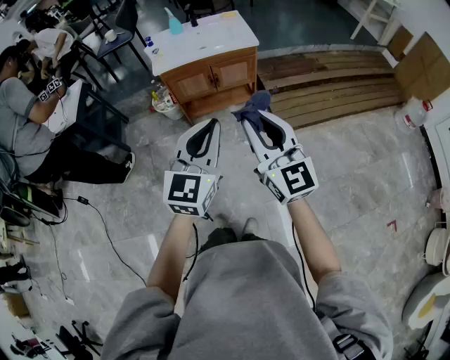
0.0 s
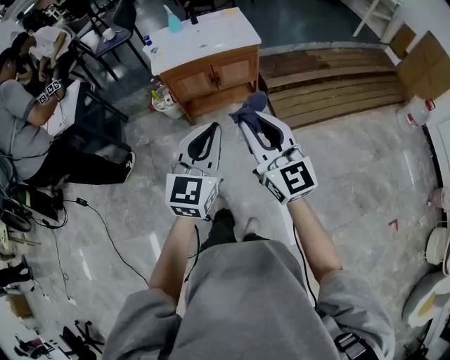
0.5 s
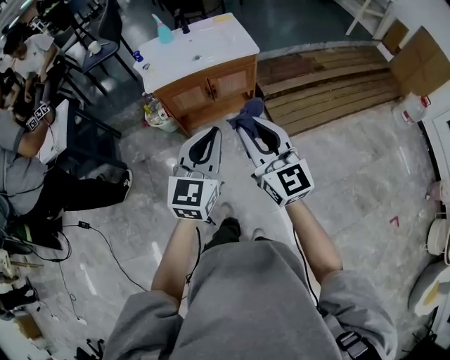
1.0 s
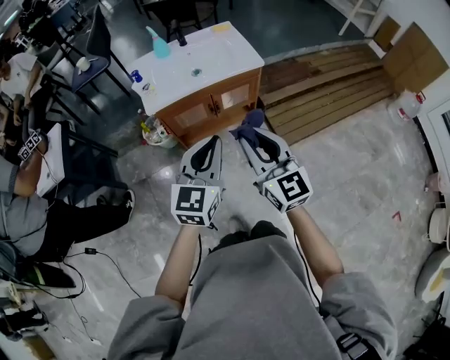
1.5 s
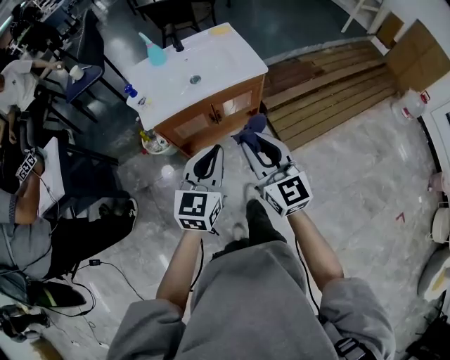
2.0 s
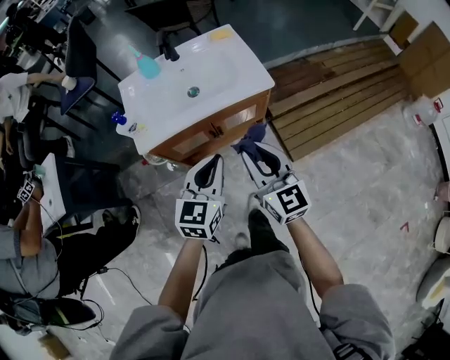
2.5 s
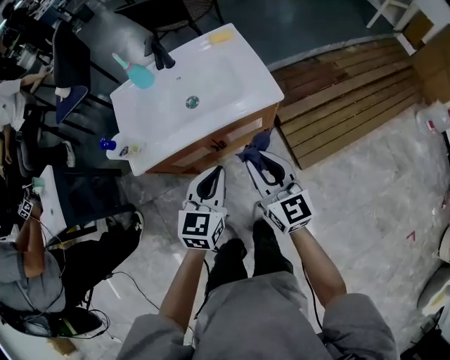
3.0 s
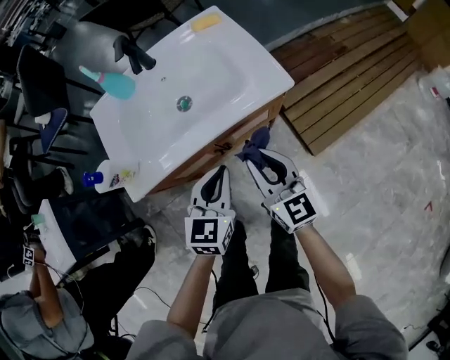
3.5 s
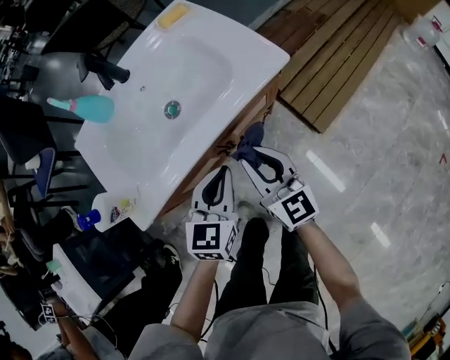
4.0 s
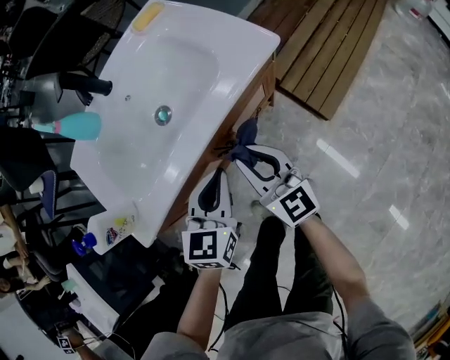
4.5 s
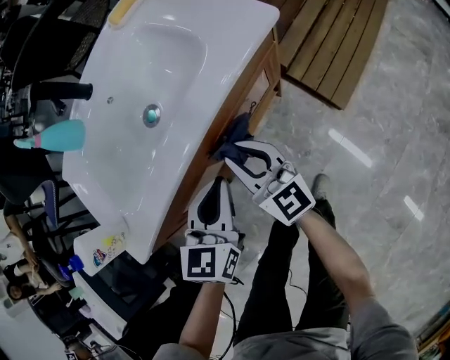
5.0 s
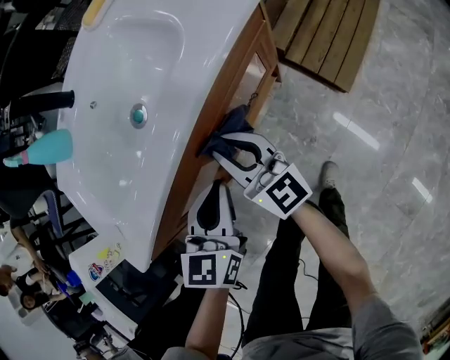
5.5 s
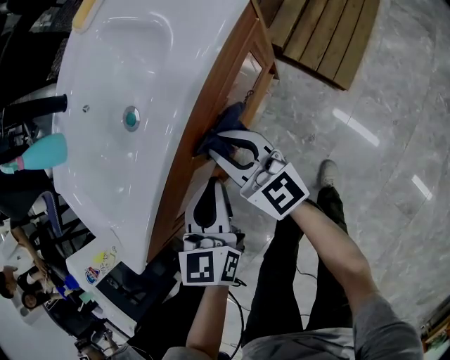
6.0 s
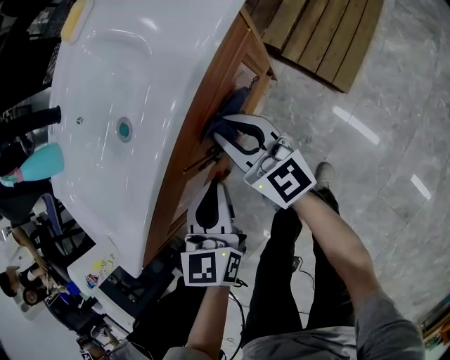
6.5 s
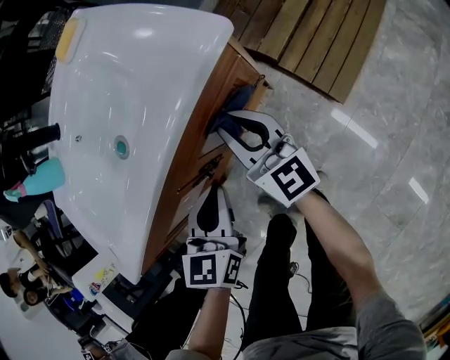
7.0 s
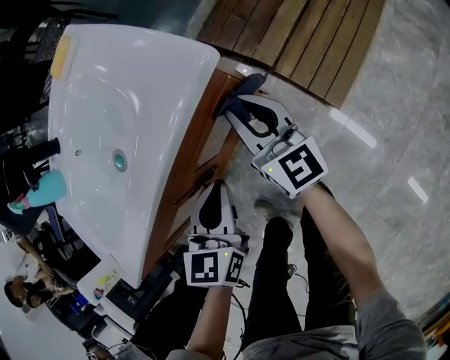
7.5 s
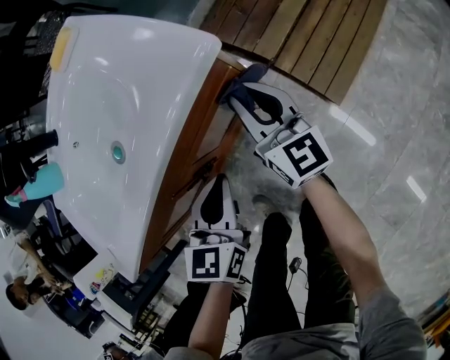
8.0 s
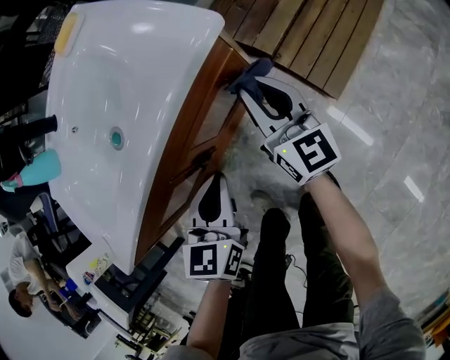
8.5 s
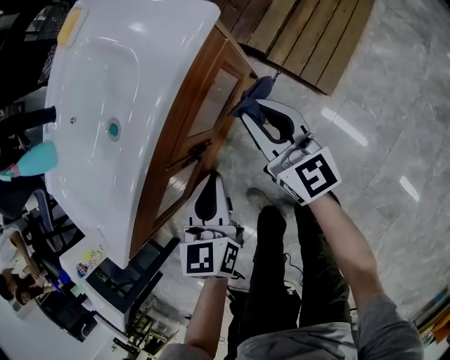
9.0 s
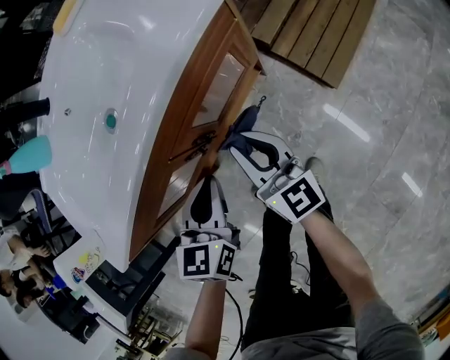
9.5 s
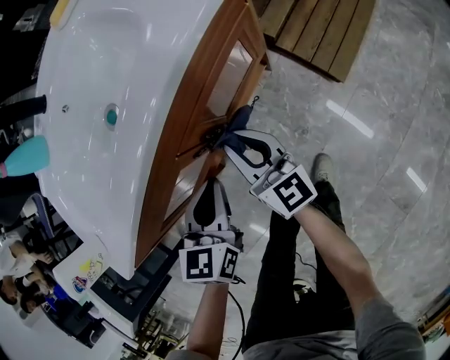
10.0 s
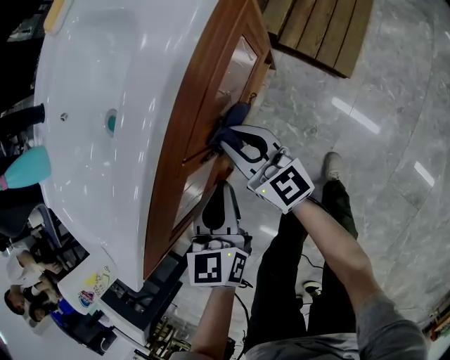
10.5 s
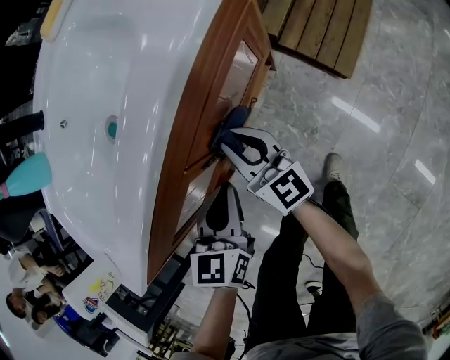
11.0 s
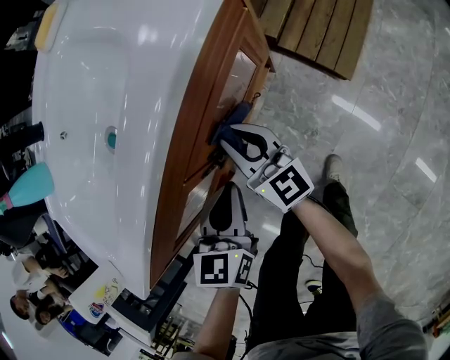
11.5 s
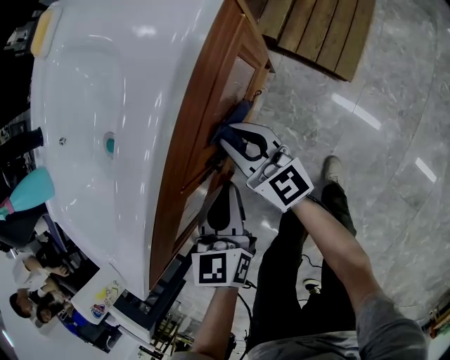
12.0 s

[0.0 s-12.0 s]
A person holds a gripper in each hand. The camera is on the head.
0.0 to 2.0 s: The right gripper heads forward, covering some 30 cm. The left gripper moves forward and downward, approximately 30 cm.
2.0 to 4.0 s: The left gripper shifts about 35 cm forward and downward. The right gripper goes roughly 35 cm downward and forward.
4.0 to 6.0 s: The right gripper shifts approximately 15 cm downward and forward; the left gripper shifts approximately 10 cm downward.
6.0 to 8.0 s: The left gripper moves to the right, about 10 cm. The right gripper travels to the right and forward by about 20 cm.
8.0 to 10.0 s: The right gripper goes some 20 cm backward and to the left; the left gripper shifts about 15 cm to the left and backward.
10.0 to 12.0 s: The right gripper is displaced forward by approximately 5 cm.

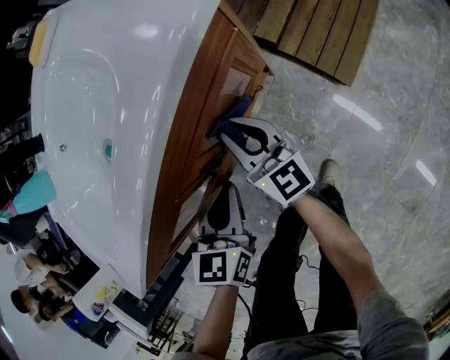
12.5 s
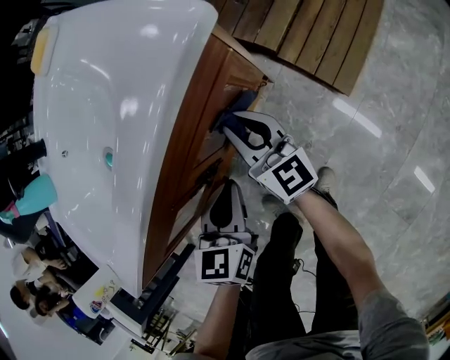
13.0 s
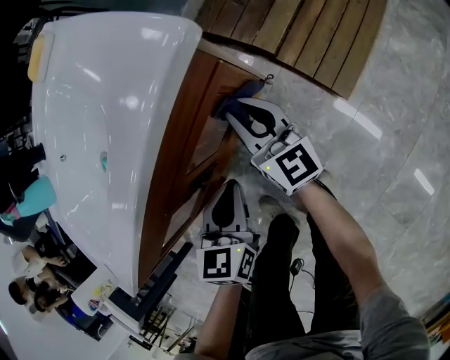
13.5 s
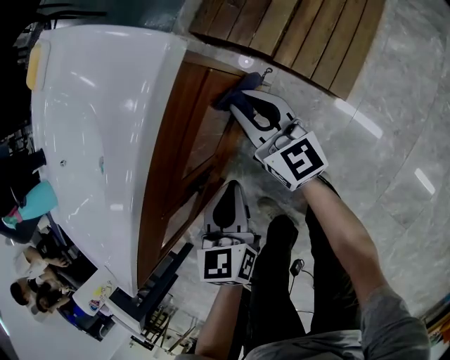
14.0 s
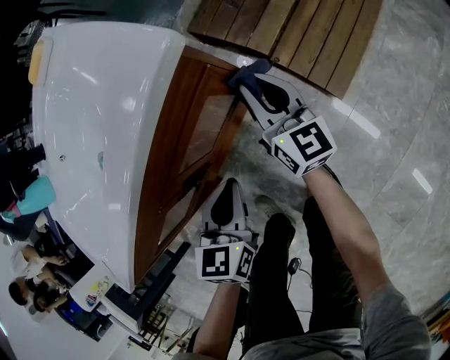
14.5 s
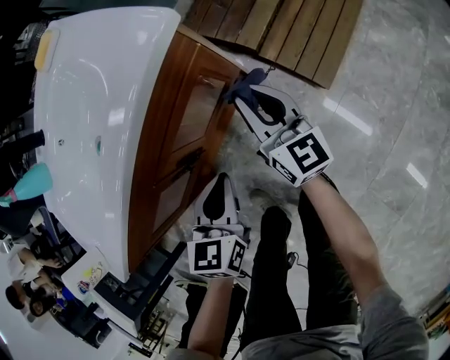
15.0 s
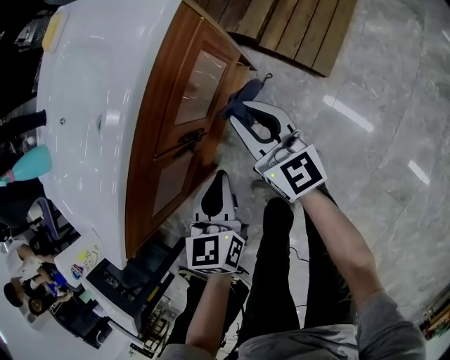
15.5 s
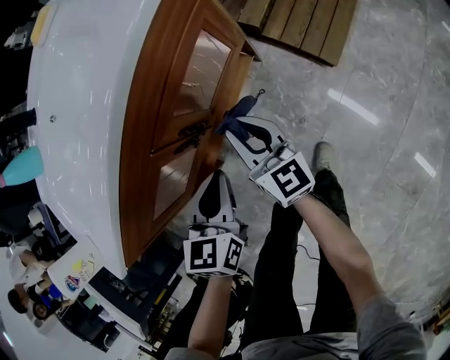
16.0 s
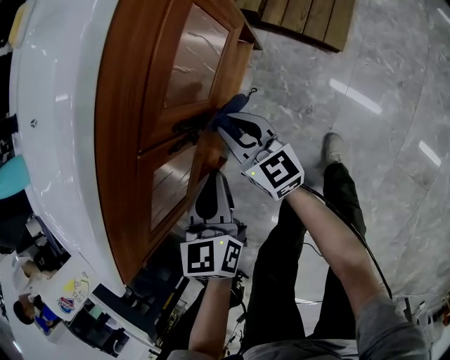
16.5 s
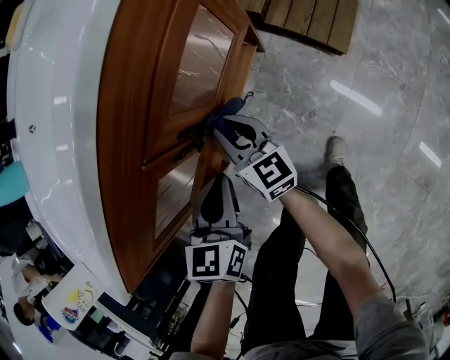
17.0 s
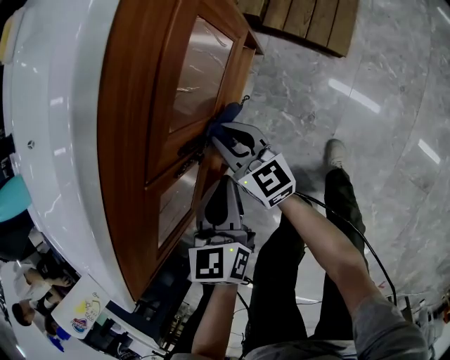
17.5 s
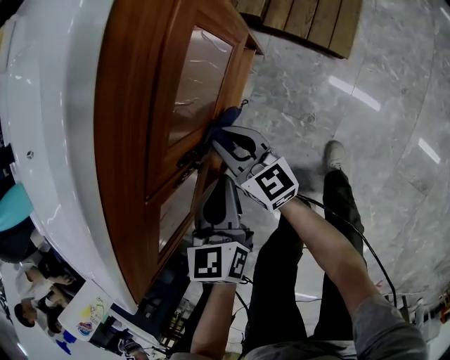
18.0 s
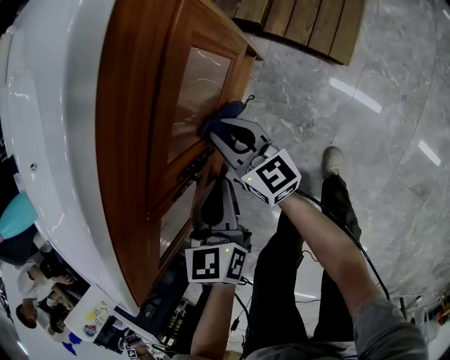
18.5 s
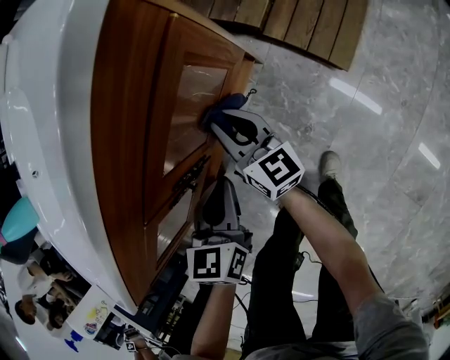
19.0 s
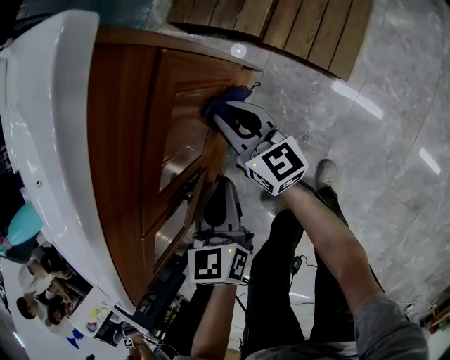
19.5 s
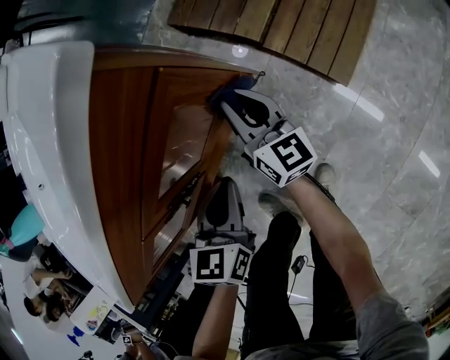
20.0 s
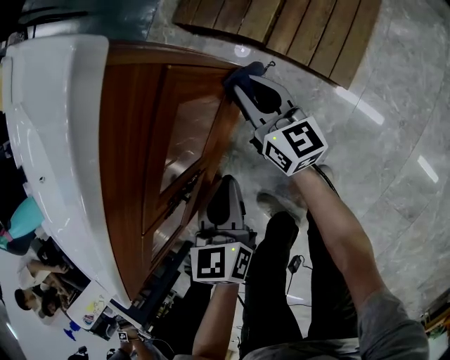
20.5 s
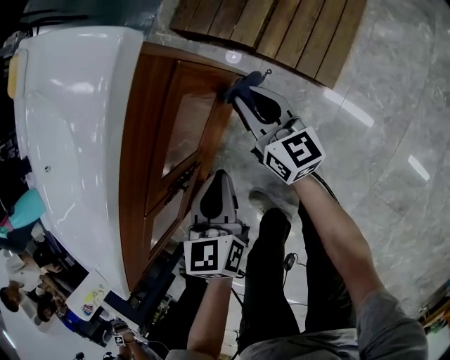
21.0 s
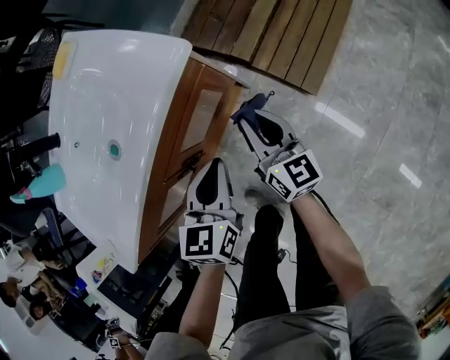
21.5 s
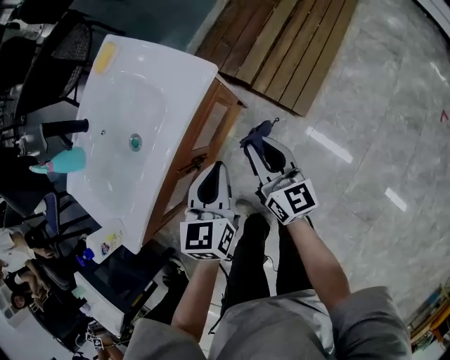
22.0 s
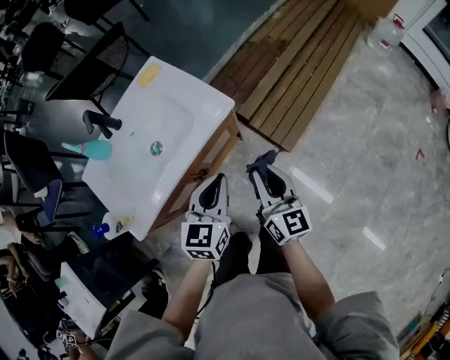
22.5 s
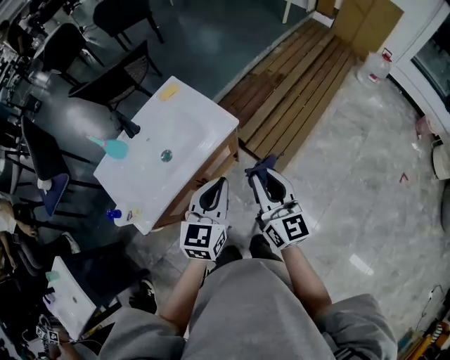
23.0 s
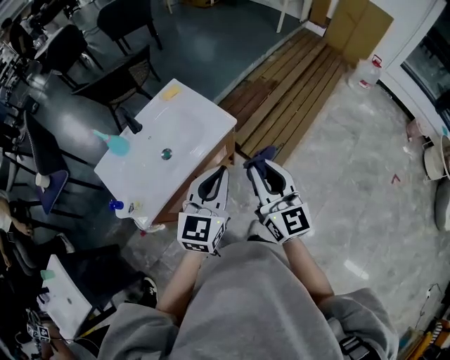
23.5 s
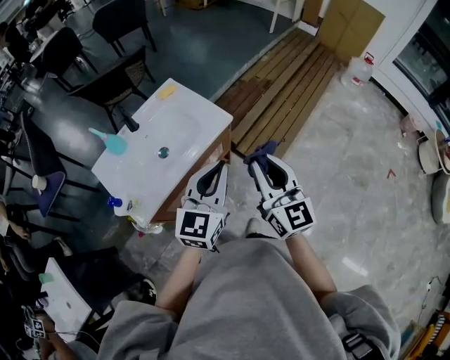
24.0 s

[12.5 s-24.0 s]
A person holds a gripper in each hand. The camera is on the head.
12.5 to 14.5 s: The right gripper shifts about 15 cm to the right and forward; the left gripper heads to the right, covering about 5 cm.
14.5 to 16.5 s: The left gripper moves to the left and backward, roughly 15 cm. Meanwhile the right gripper shifts approximately 25 cm to the left, backward and downward.
16.5 to 18.5 s: The two grippers go about 5 cm forward.
18.5 to 20.0 s: The left gripper shifts approximately 5 cm to the right, while the right gripper travels to the right and forward by about 15 cm.
20.0 to 22.0 s: The left gripper moves upward, about 25 cm; the right gripper shifts some 30 cm upward and backward.
22.0 to 24.0 s: The grippers both shift upward by approximately 30 cm. The left gripper rotates approximately 30 degrees; the right gripper rotates about 30 degrees.

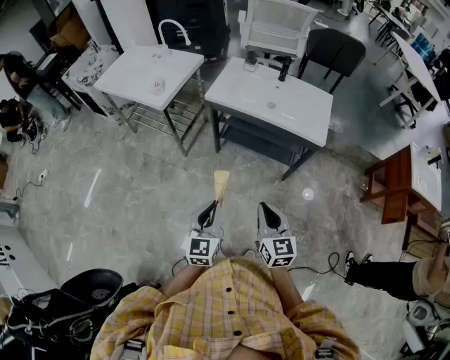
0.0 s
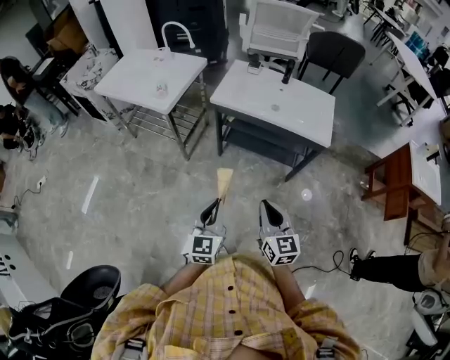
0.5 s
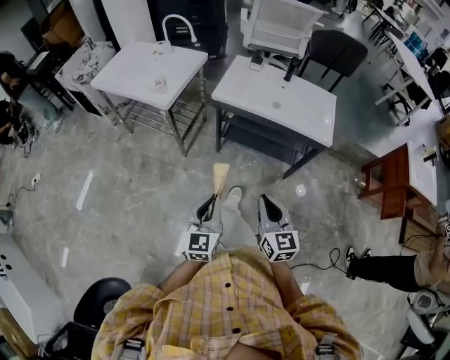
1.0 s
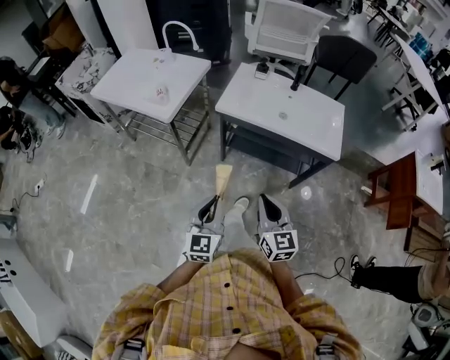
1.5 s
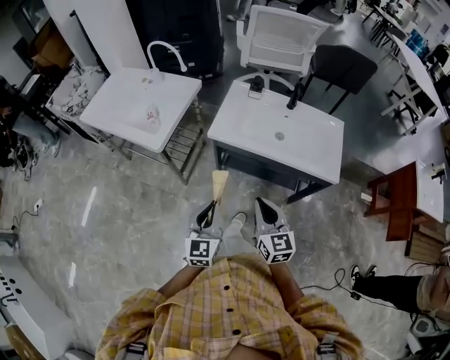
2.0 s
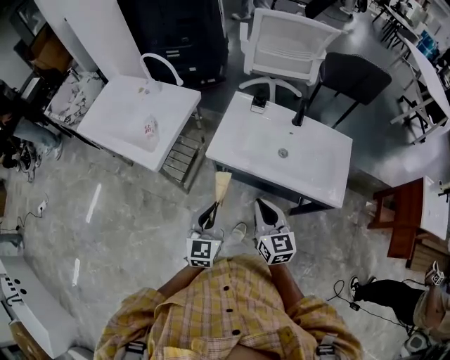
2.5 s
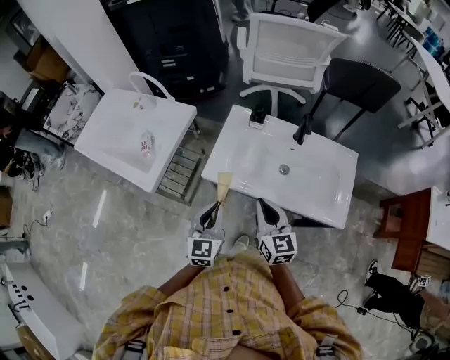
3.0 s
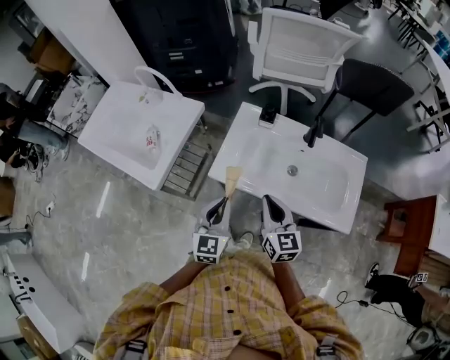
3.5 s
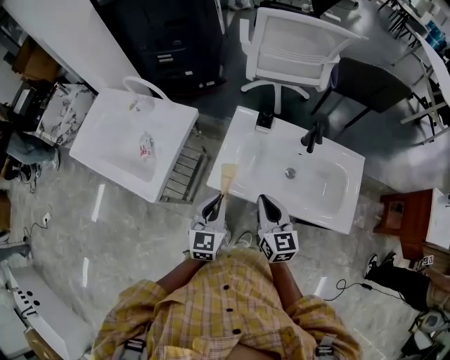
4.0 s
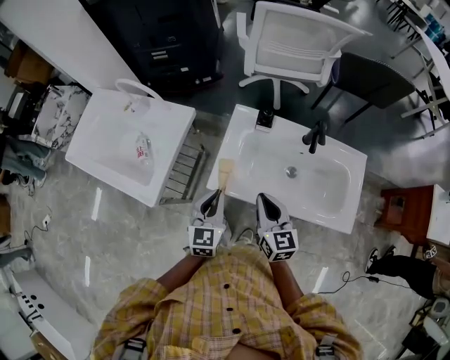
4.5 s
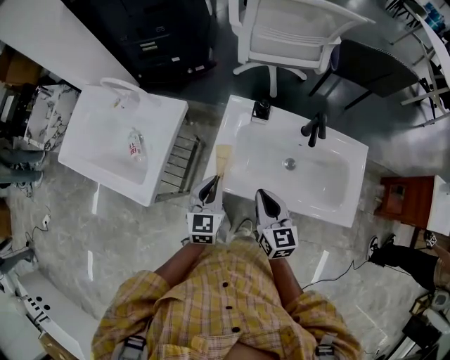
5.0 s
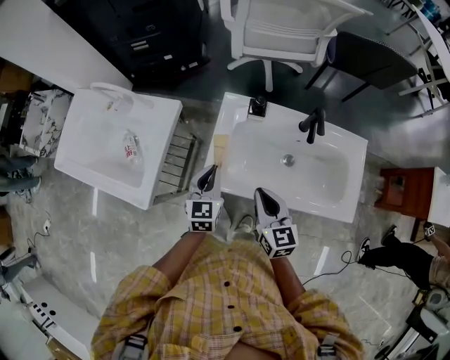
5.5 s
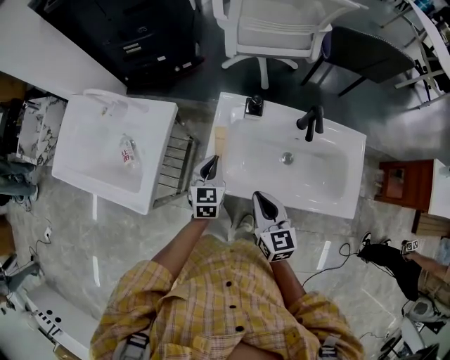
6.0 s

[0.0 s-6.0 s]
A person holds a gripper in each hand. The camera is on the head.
0.0 to 2.0 s: The two grippers go about 25 cm forward.
2.0 to 4.0 s: The grippers both shift forward by some 30 cm.
4.0 to 6.0 s: The left gripper is displaced forward and downward by roughly 15 cm.
